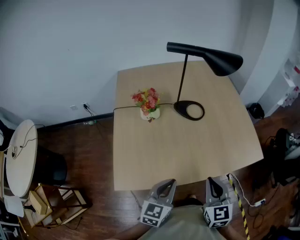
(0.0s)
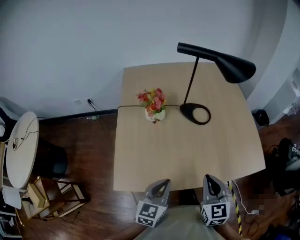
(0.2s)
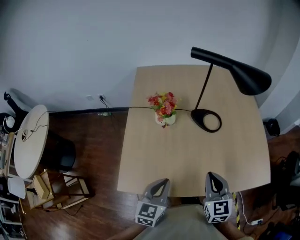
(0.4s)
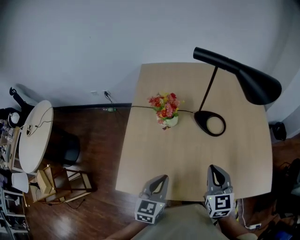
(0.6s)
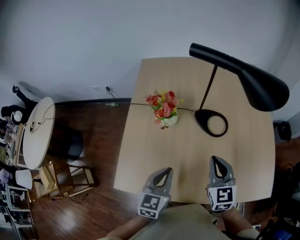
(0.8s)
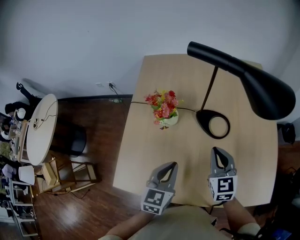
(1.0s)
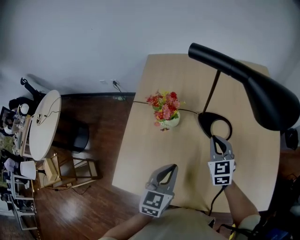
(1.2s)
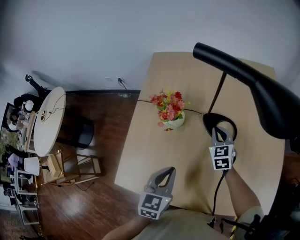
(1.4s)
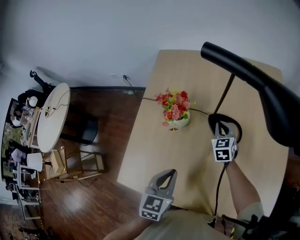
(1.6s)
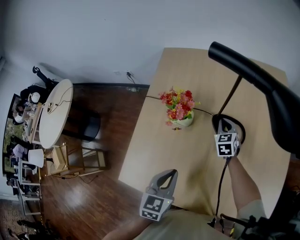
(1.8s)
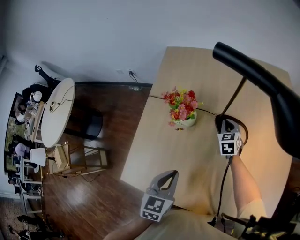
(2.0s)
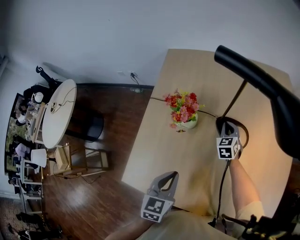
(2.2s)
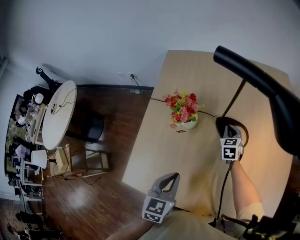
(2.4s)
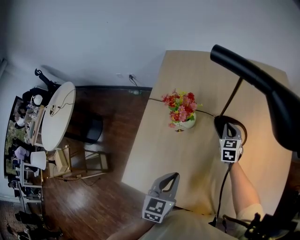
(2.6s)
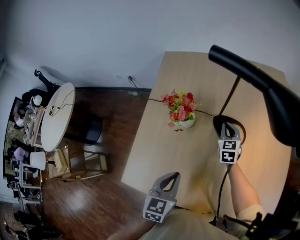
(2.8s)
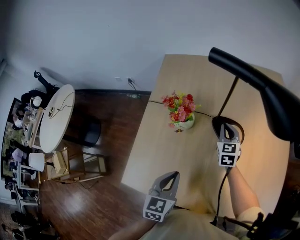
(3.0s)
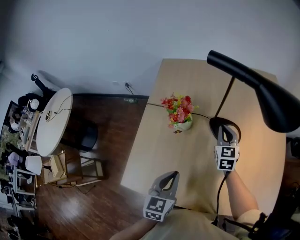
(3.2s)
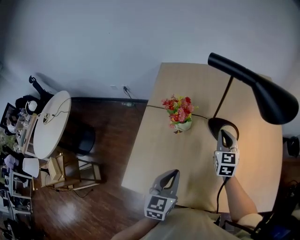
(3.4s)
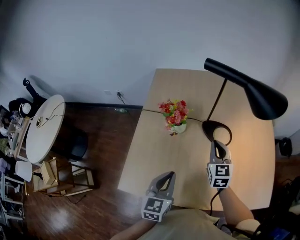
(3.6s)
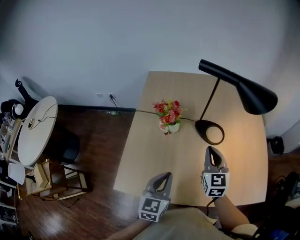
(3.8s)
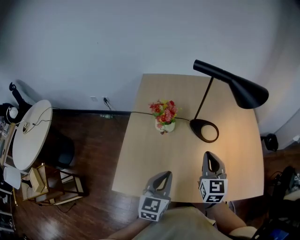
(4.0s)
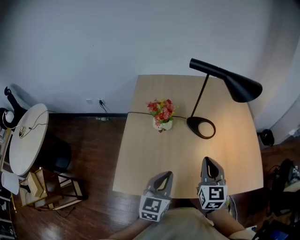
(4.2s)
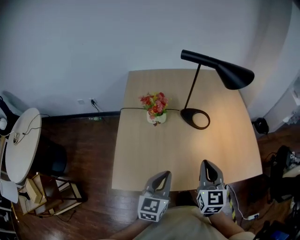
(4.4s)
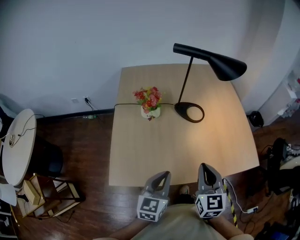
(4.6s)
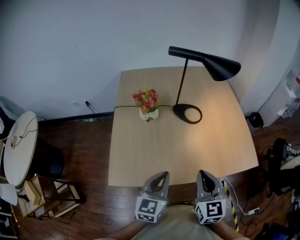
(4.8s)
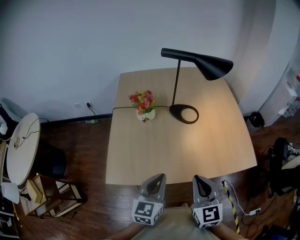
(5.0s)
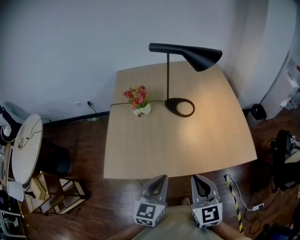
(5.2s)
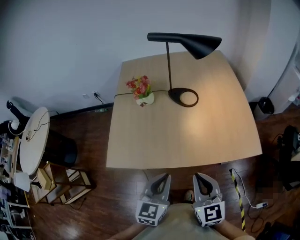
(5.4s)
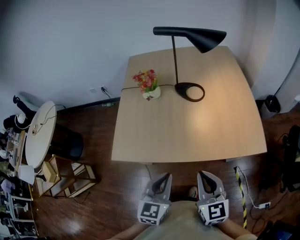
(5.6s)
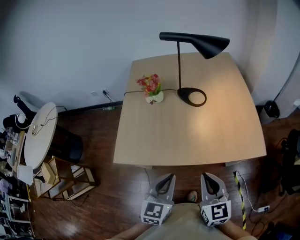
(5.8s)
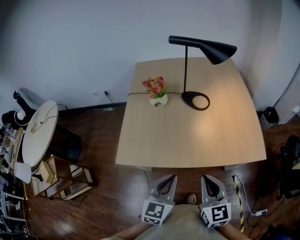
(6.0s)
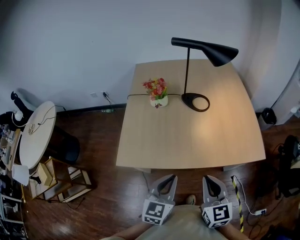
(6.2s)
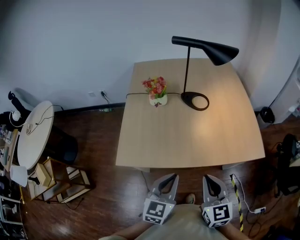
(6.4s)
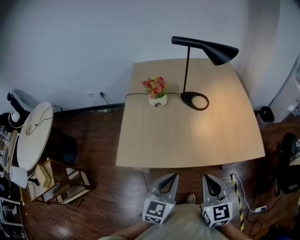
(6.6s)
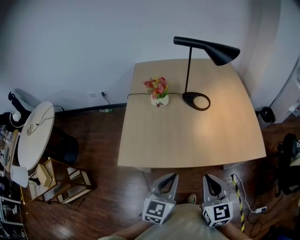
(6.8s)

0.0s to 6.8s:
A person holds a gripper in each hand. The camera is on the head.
0.0s to 1.4s: The left gripper goes roughly 20 cm forward, and changes its angle by some 30 degrees. Meanwhile the right gripper goes about 40 cm forward, and changes its angle by approximately 20 degrees.
1.4s to 2.8s: The right gripper moves some 10 cm downward and comes back.
2.8s to 4.0s: The left gripper moves backward, roughly 5 cm, while the right gripper shifts approximately 30 cm backward and upward.
4.0s to 5.4s: The right gripper heads backward, covering roughly 25 cm. Meanwhile the left gripper heads backward and to the right, covering some 20 cm.
5.4s to 6.8s: The left gripper goes some 5 cm to the left.

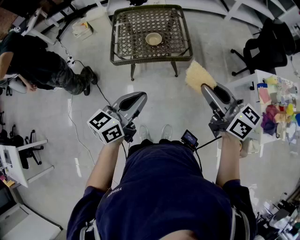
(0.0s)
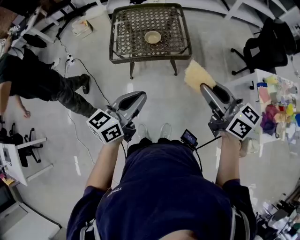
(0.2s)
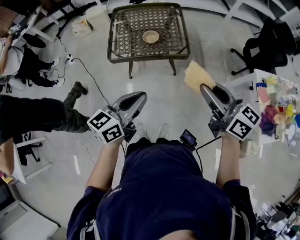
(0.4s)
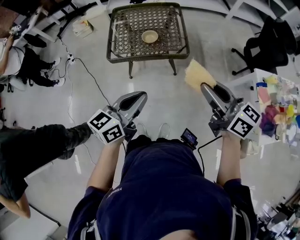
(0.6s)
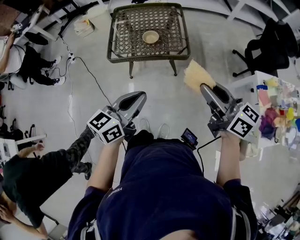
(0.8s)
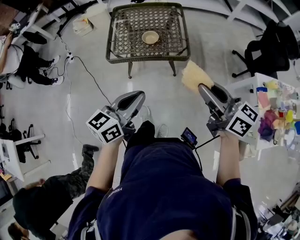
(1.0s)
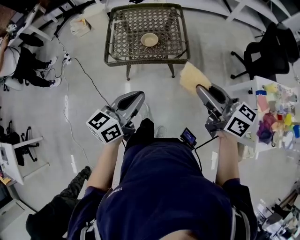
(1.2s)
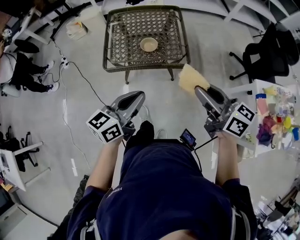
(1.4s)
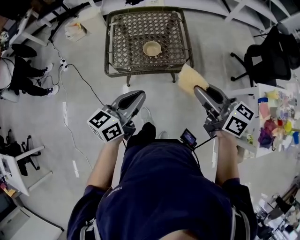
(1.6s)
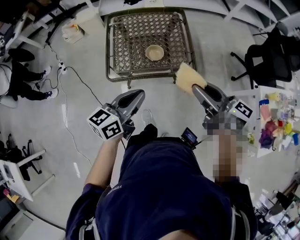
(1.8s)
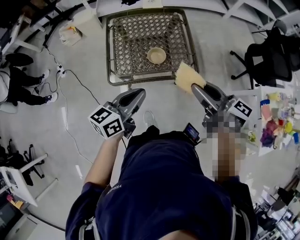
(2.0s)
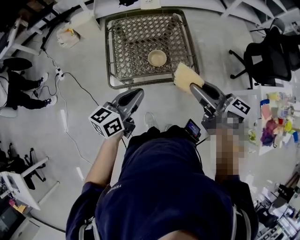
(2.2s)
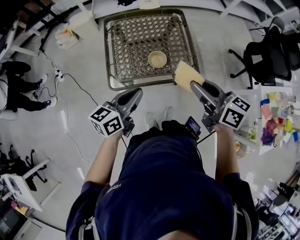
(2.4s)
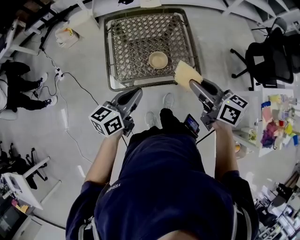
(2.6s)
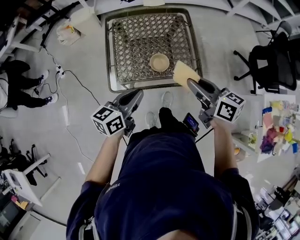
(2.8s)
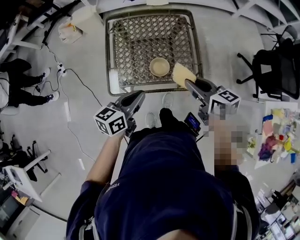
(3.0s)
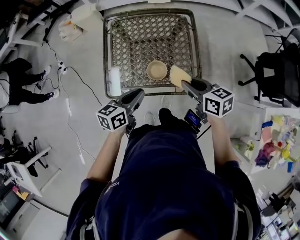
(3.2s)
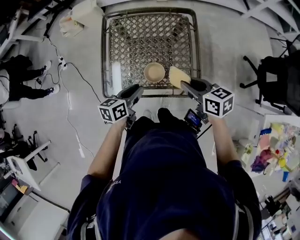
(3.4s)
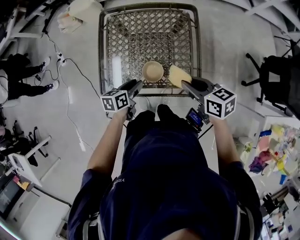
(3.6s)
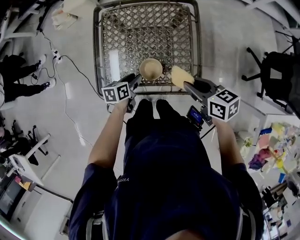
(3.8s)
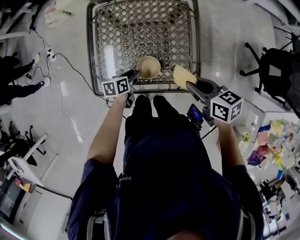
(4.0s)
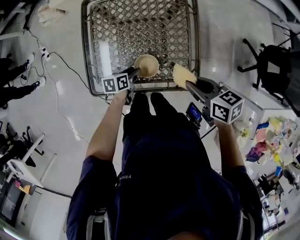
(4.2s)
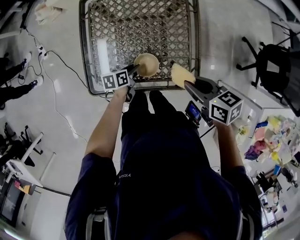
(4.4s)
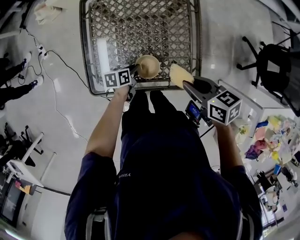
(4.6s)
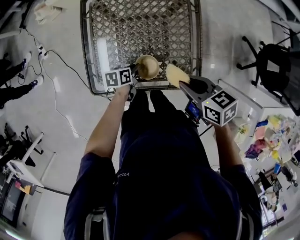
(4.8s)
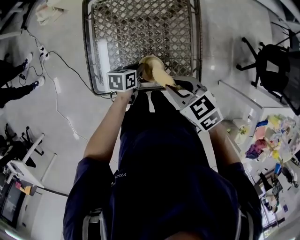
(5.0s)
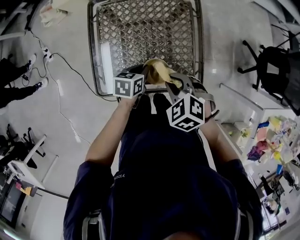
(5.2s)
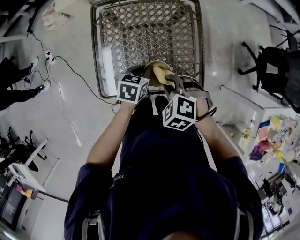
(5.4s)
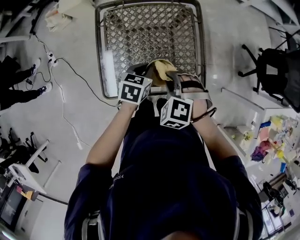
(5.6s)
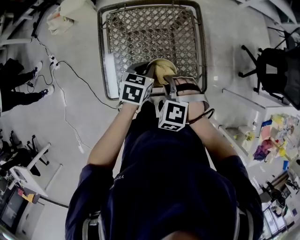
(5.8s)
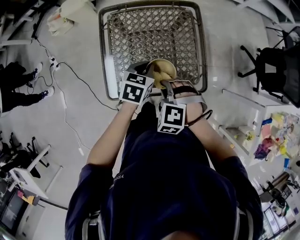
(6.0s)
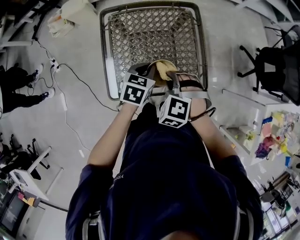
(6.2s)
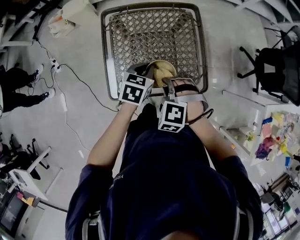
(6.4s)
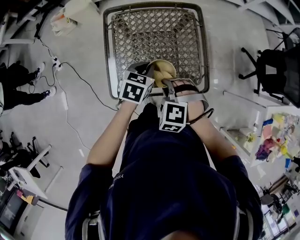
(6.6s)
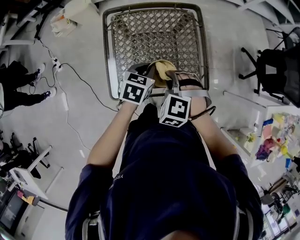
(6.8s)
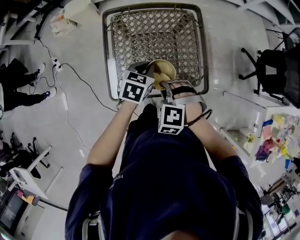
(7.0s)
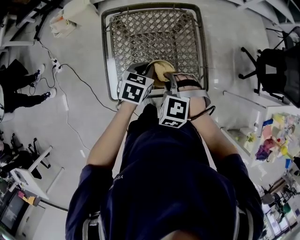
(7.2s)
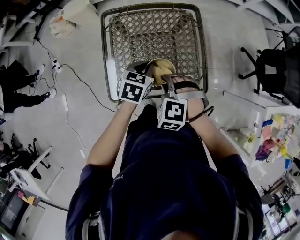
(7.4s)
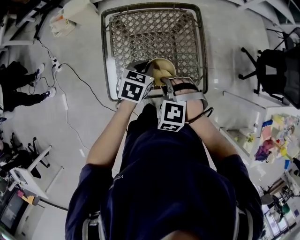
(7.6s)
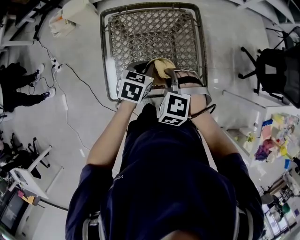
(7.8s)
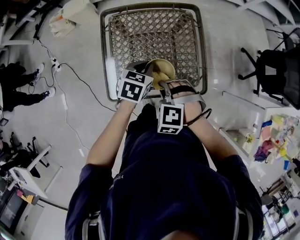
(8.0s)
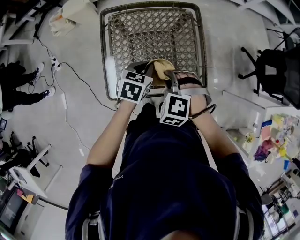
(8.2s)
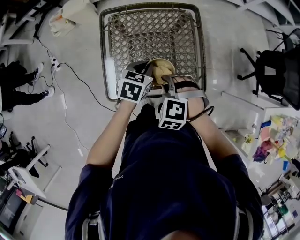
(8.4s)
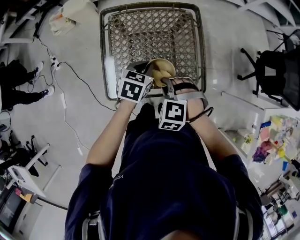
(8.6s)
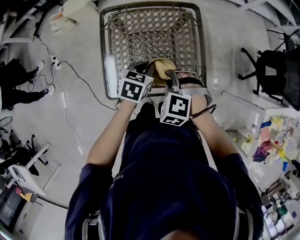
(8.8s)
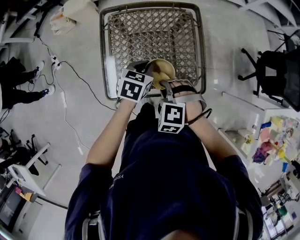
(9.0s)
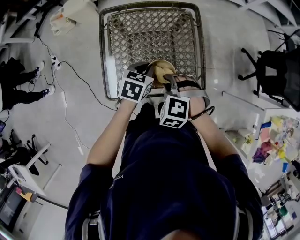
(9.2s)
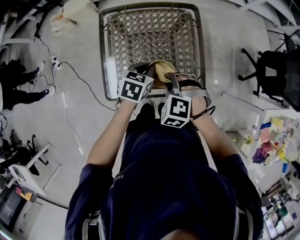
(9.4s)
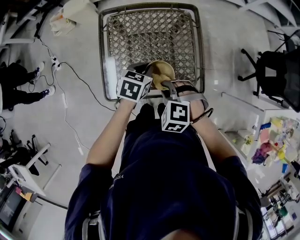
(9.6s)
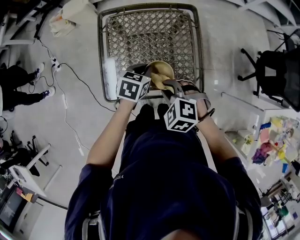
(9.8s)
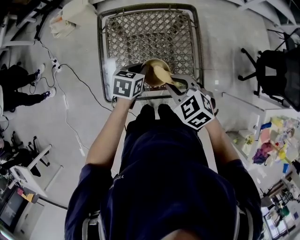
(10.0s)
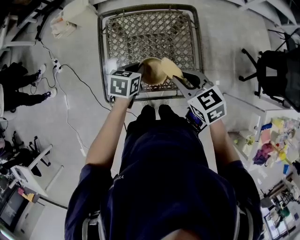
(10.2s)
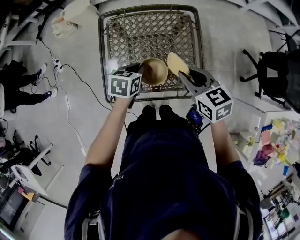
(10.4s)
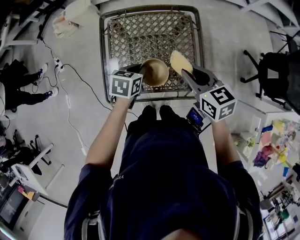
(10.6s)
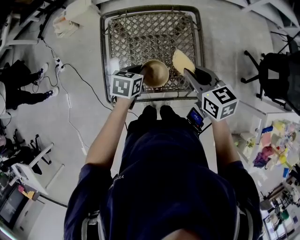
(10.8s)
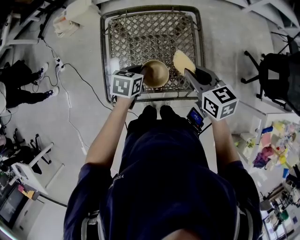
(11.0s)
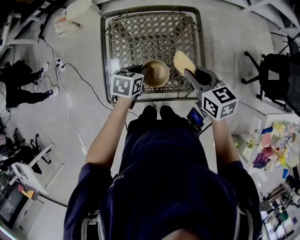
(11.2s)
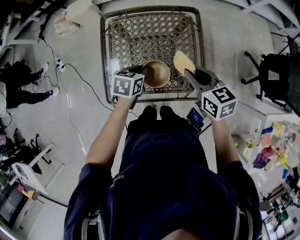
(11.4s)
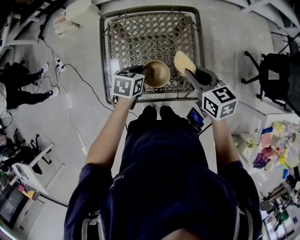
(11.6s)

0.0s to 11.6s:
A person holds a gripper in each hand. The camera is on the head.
0.0s to 1.4s: Both grippers travel together forward, some 10 cm.
1.4s to 2.8s: The left gripper goes approximately 25 cm forward, to the left and downward. Meanwhile the right gripper travels forward and downward by approximately 25 cm.
2.8s to 4.4s: The left gripper moves downward and forward, roughly 35 cm, turns by roughly 40 degrees, and opens up, while the right gripper heads downward, forward and to the right, covering about 20 cm, and swivels some 30 degrees.
4.4s to 5.8s: The right gripper heads to the left, covering roughly 15 cm, and rotates around the line of its fingers by approximately 70 degrees, counterclockwise from behind, while the left gripper goes about 20 cm upward, rotates about 40 degrees, and closes its fingers.
5.8s to 8.8s: The grippers move only a little.
8.8s to 10.2s: The right gripper travels upward and to the right by some 10 cm, and rotates around the line of its fingers by some 50 degrees, clockwise from behind.
10.2s to 11.6s: The right gripper ends up some 5 cm from where it was.

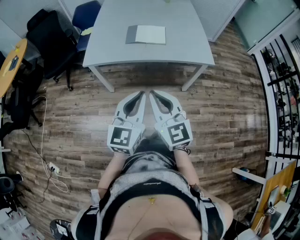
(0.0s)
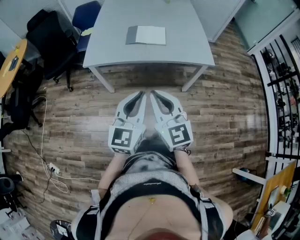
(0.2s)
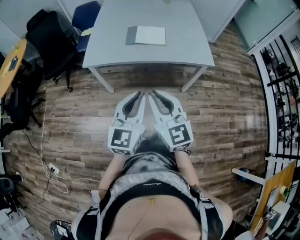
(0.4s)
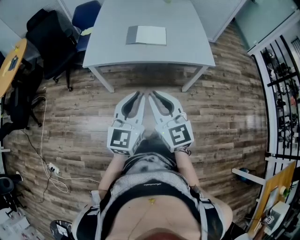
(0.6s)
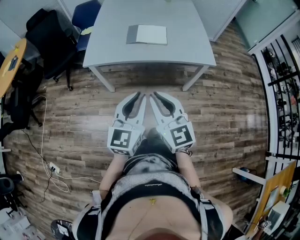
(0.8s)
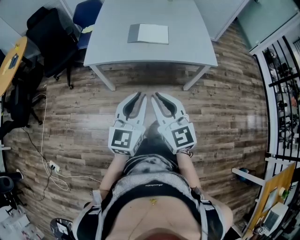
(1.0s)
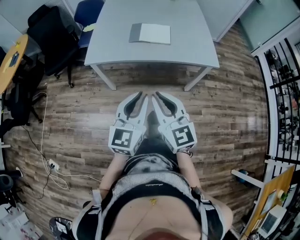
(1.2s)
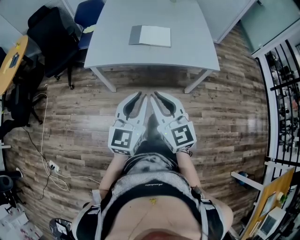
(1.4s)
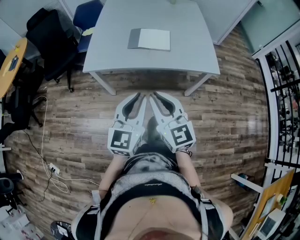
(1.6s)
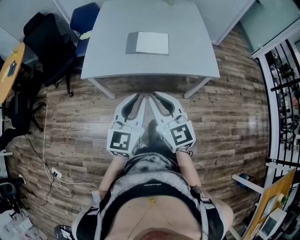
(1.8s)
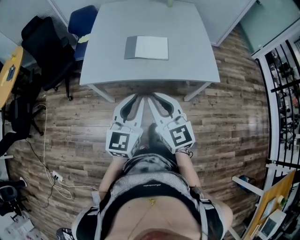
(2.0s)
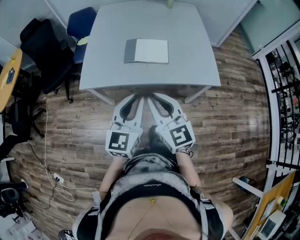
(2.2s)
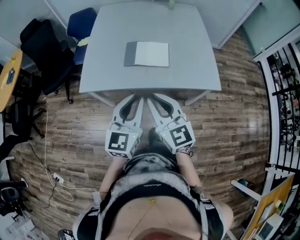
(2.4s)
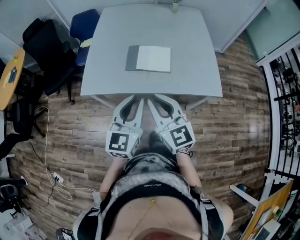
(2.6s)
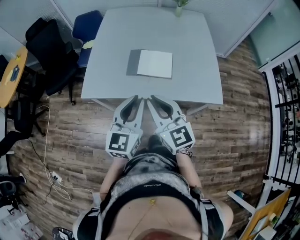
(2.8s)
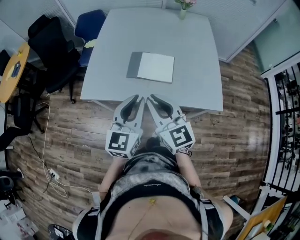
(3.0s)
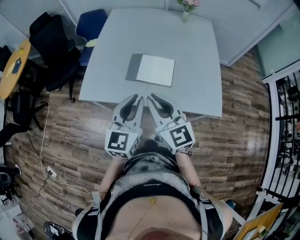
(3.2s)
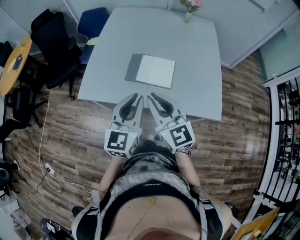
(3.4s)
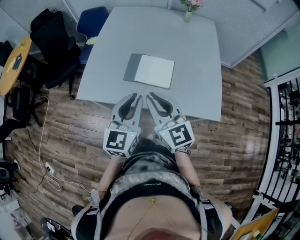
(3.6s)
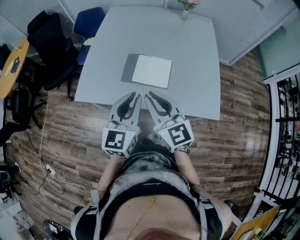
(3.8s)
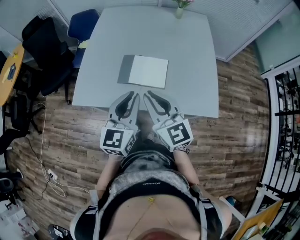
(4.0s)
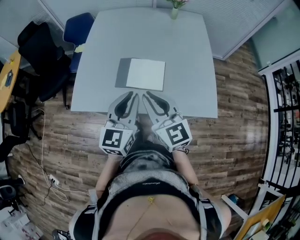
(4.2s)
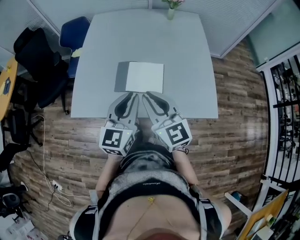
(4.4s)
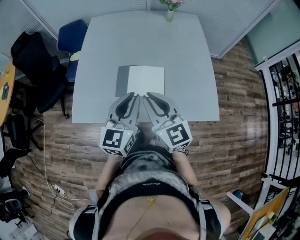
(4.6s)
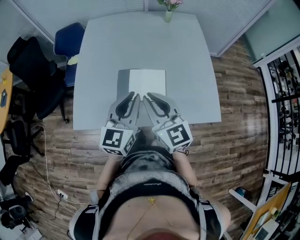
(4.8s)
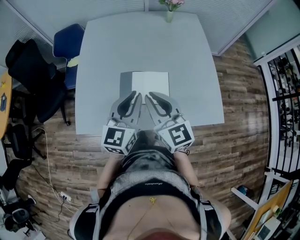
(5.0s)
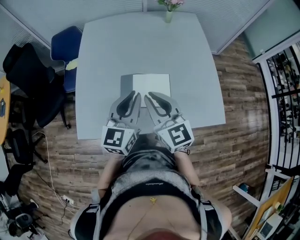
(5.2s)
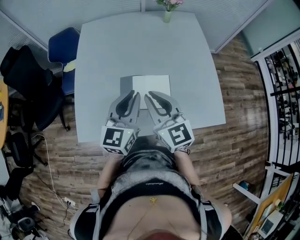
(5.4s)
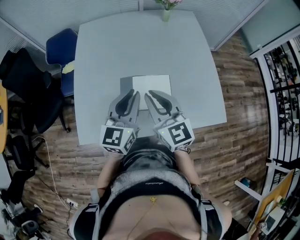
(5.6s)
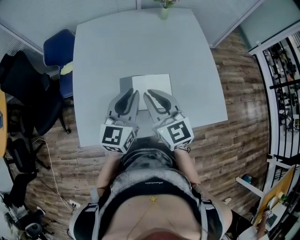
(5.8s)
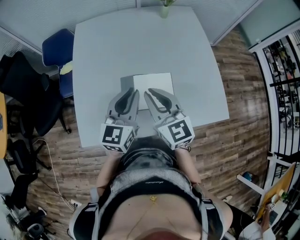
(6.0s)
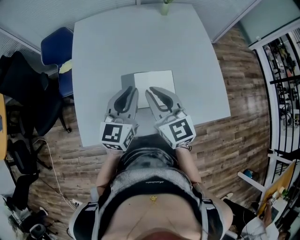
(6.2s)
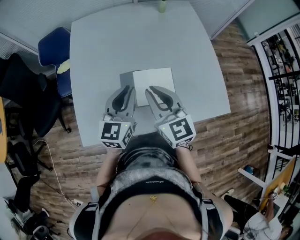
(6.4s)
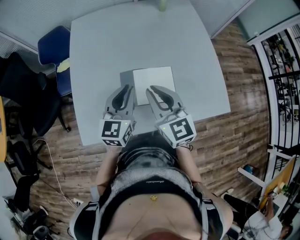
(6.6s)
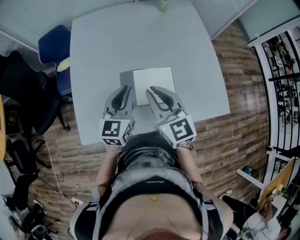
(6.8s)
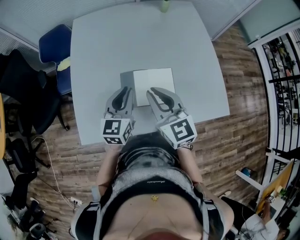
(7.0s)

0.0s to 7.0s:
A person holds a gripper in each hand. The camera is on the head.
0.0s to 1.4s: The grippers move only a little.
1.4s to 2.8s: The two grippers go some 20 cm forward.
2.8s to 4.2s: Both grippers move forward and to the right, about 10 cm.
4.2s to 5.6s: The two grippers go some 15 cm forward.
5.6s to 7.0s: The left gripper is displaced downward by about 10 cm.
